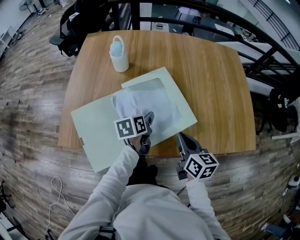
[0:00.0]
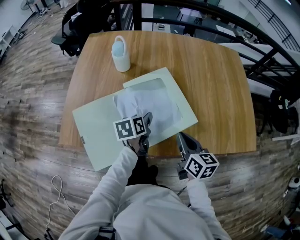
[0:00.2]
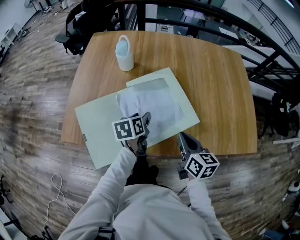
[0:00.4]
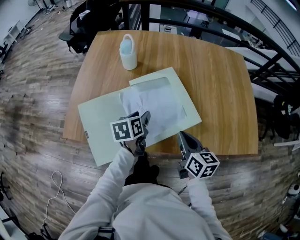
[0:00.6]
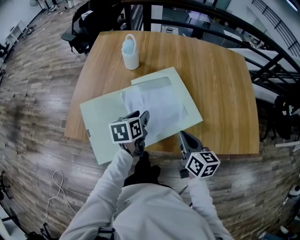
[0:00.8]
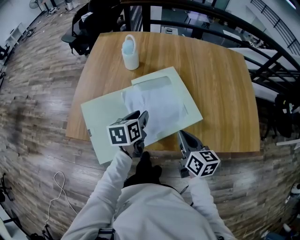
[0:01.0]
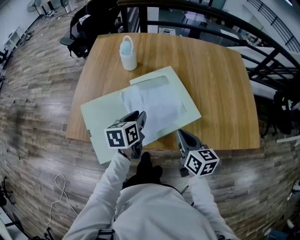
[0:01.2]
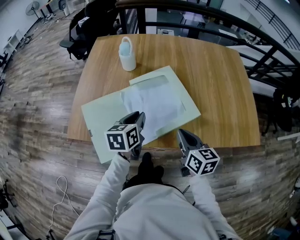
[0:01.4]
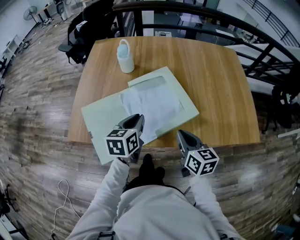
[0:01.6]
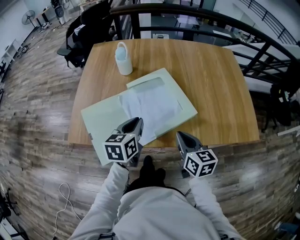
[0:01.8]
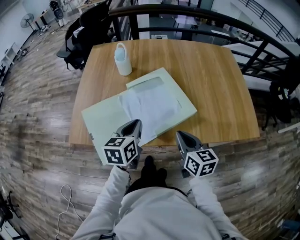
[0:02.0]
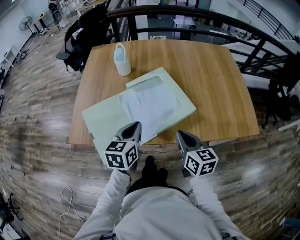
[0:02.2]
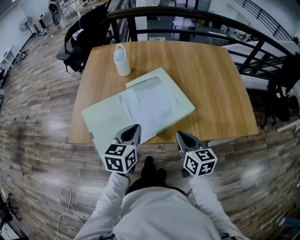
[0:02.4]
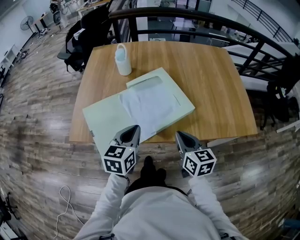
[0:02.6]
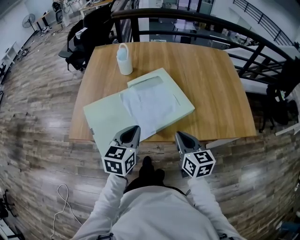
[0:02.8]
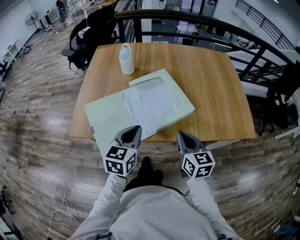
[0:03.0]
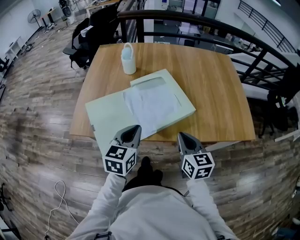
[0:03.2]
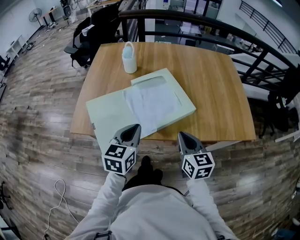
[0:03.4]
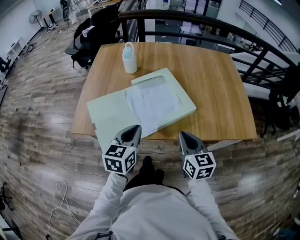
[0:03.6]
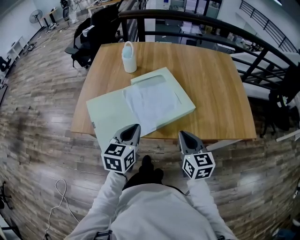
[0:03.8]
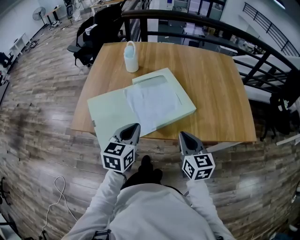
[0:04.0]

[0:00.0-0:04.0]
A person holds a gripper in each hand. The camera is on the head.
0:00.0 to 0:01.4: The left gripper is displaced upward and backward by approximately 10 cm, swivels roughly 20 degrees, and closes its fingers.
0:01.4 to 0:02.6: The left gripper goes about 10 cm backward.
0:02.6 to 0:04.0: The grippers stay close to where they were, moving slightly.

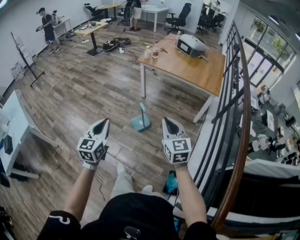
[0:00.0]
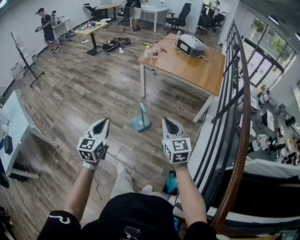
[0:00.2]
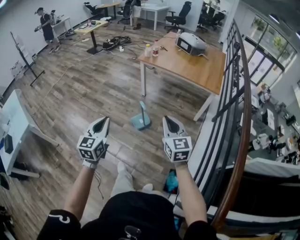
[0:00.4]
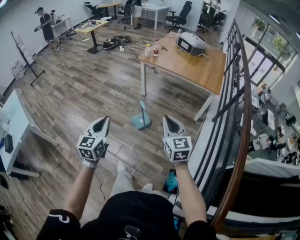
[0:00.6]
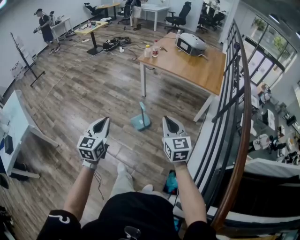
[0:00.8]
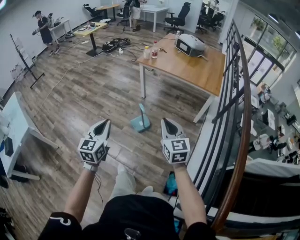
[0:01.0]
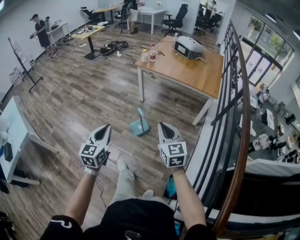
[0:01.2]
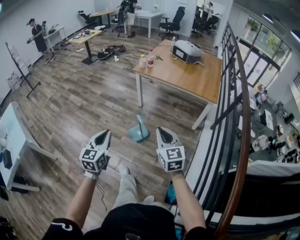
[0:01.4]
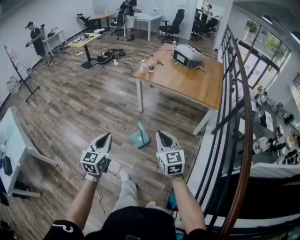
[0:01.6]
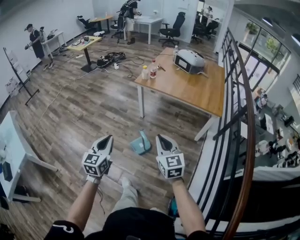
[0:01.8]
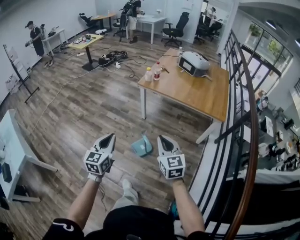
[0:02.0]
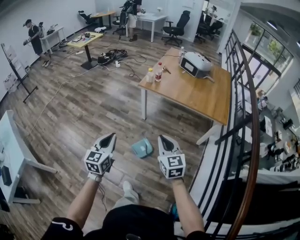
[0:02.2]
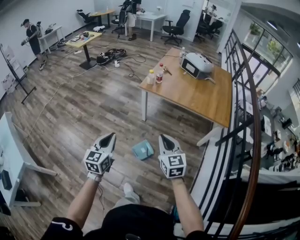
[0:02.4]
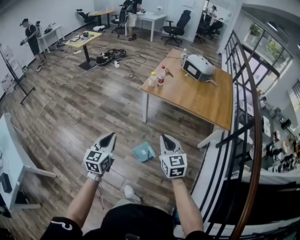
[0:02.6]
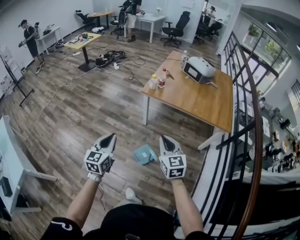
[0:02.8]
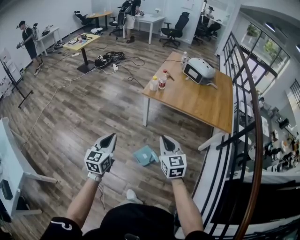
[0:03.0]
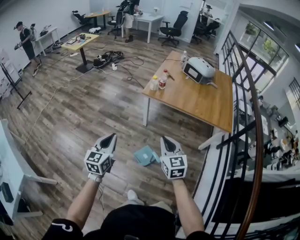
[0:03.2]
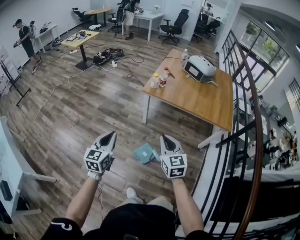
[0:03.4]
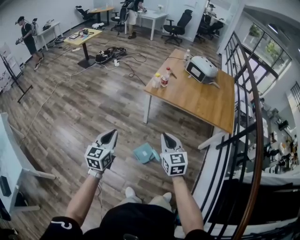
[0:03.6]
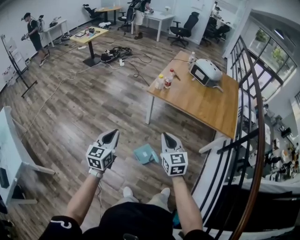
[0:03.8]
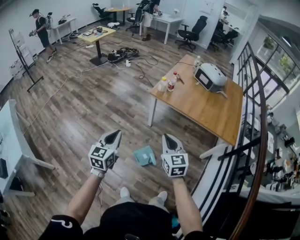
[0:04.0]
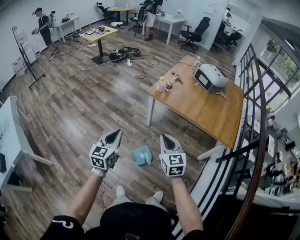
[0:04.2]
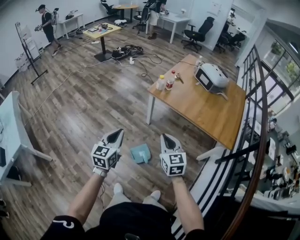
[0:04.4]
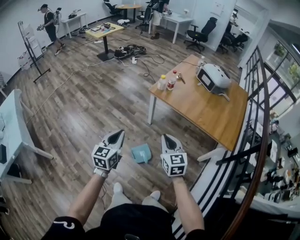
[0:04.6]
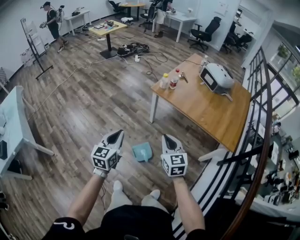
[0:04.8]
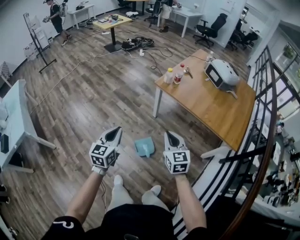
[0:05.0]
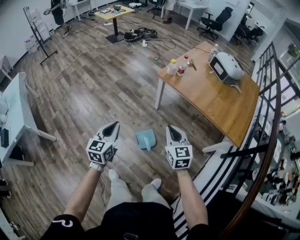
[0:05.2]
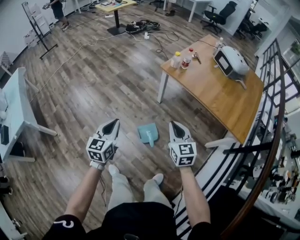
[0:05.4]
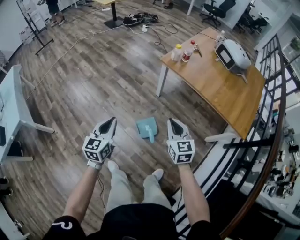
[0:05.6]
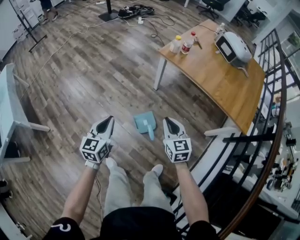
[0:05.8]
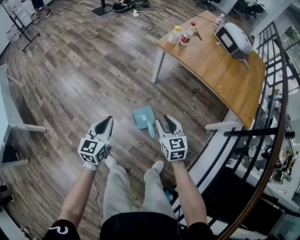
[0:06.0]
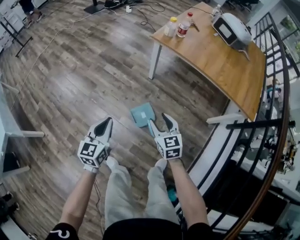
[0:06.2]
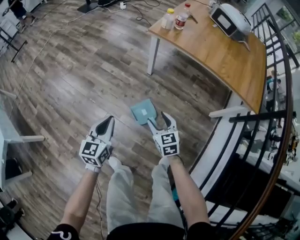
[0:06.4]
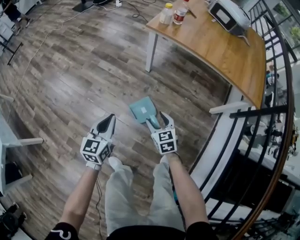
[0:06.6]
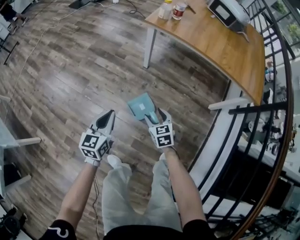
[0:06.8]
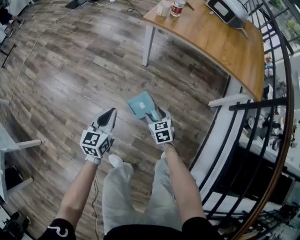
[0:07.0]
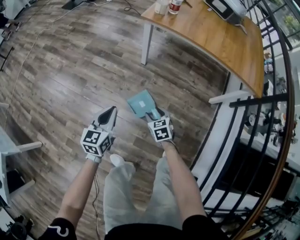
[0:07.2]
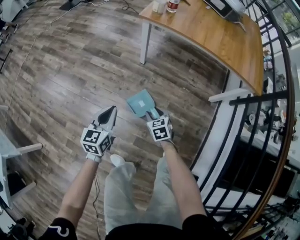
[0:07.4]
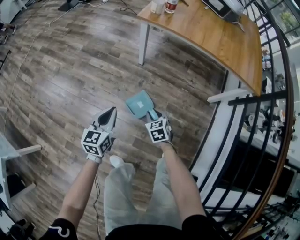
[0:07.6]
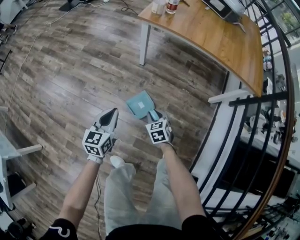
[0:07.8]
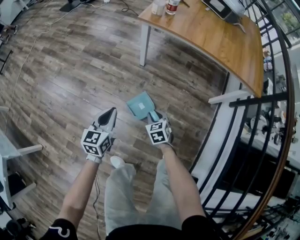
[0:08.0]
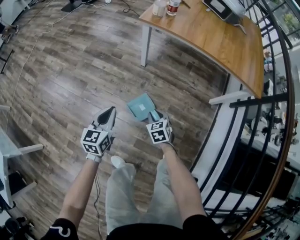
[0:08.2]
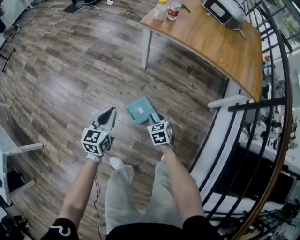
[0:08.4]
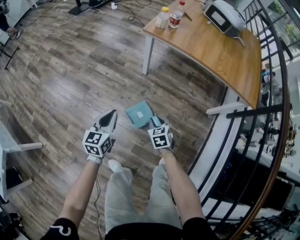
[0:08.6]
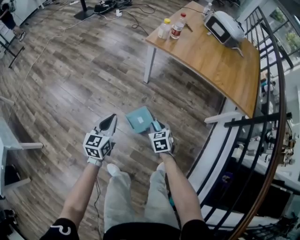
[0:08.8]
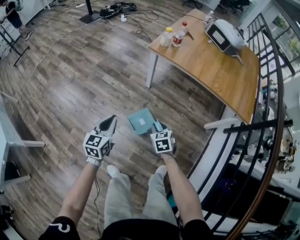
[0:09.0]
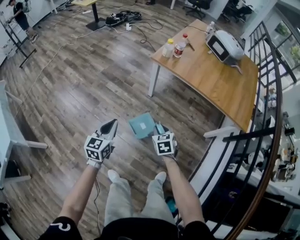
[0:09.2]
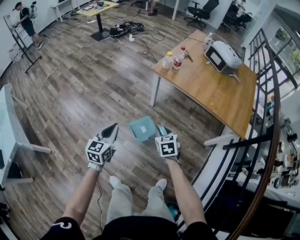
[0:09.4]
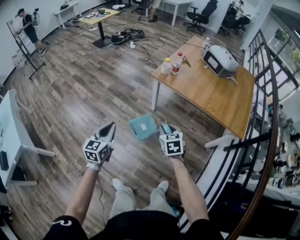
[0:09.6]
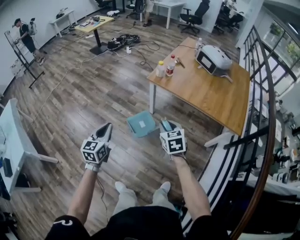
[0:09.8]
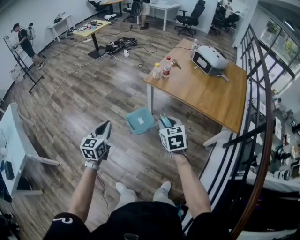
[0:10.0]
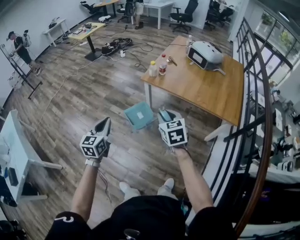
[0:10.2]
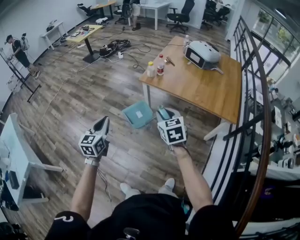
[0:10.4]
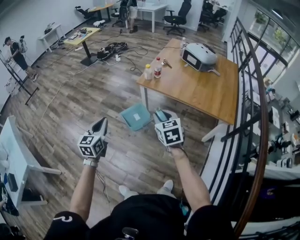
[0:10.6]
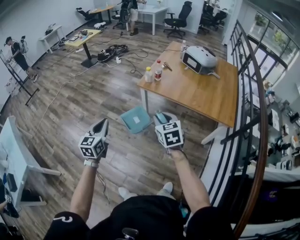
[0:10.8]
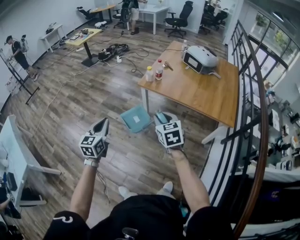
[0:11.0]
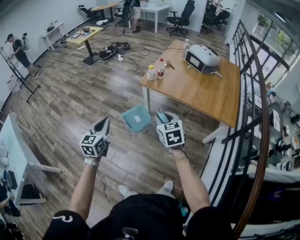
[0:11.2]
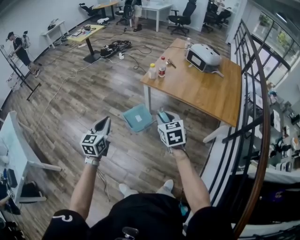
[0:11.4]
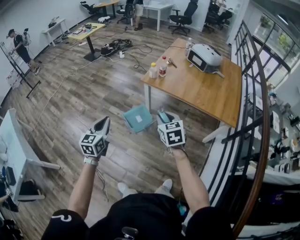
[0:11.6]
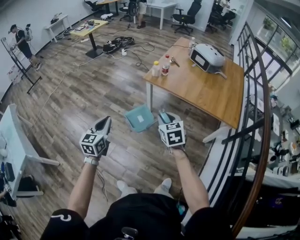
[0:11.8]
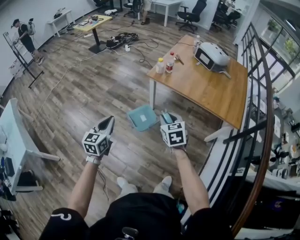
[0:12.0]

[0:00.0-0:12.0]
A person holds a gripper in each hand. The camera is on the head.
0:00.0 to 0:01.6: Both grippers move forward, approximately 10 cm.
0:01.6 to 0:03.0: The two grippers go about 30 cm forward and to the left.
0:03.0 to 0:04.4: Both grippers travel together to the right, some 10 cm.
0:04.4 to 0:06.0: Both grippers move downward, about 20 cm. The right gripper opens its fingers.
0:06.0 to 0:07.6: The left gripper goes roughly 15 cm downward. The right gripper goes about 30 cm downward, turns by approximately 30 degrees, and opens, then closes again.
0:07.6 to 0:09.0: The two grippers go some 15 cm upward.
0:09.0 to 0:10.4: The grippers both shift upward by some 30 cm. The right gripper rotates roughly 20 degrees.
0:10.4 to 0:12.0: The right gripper moves downward, approximately 5 cm.

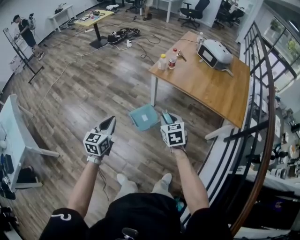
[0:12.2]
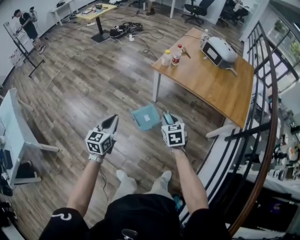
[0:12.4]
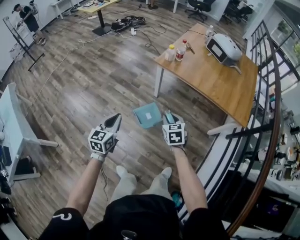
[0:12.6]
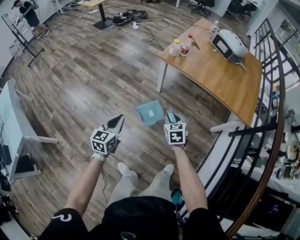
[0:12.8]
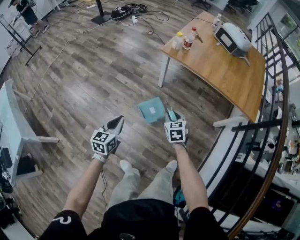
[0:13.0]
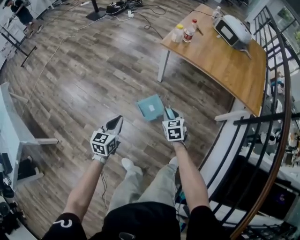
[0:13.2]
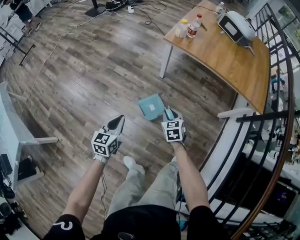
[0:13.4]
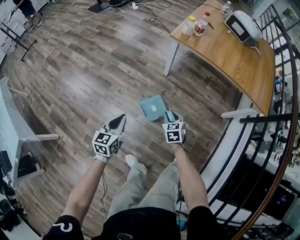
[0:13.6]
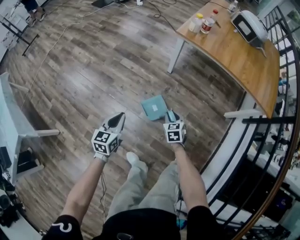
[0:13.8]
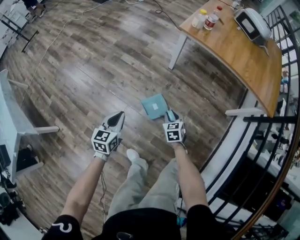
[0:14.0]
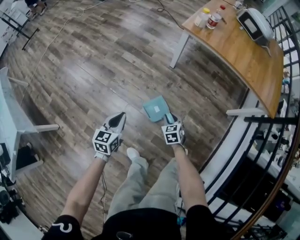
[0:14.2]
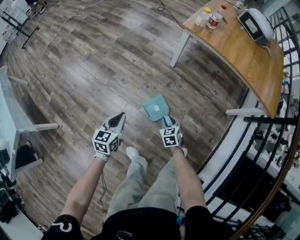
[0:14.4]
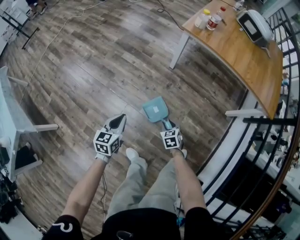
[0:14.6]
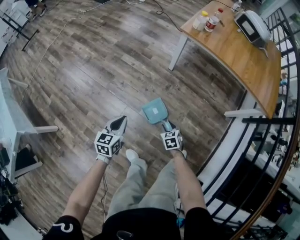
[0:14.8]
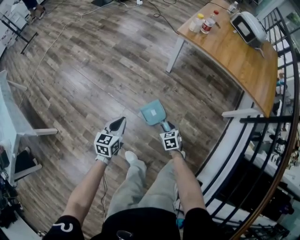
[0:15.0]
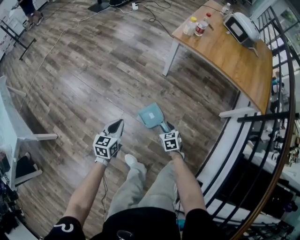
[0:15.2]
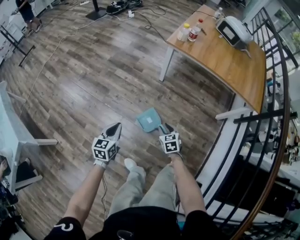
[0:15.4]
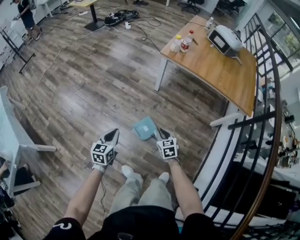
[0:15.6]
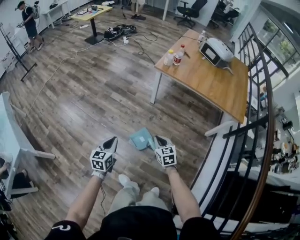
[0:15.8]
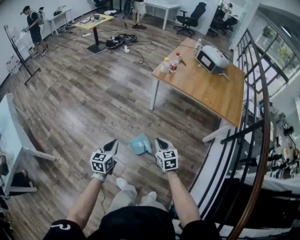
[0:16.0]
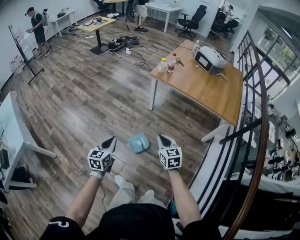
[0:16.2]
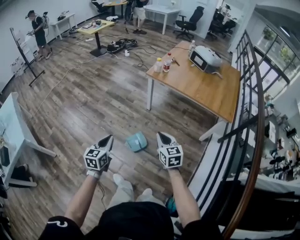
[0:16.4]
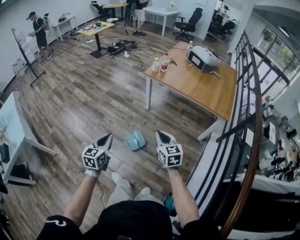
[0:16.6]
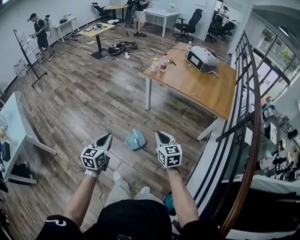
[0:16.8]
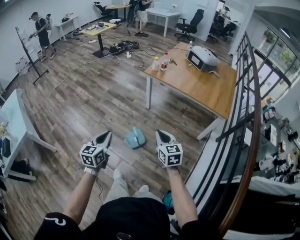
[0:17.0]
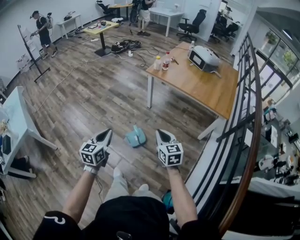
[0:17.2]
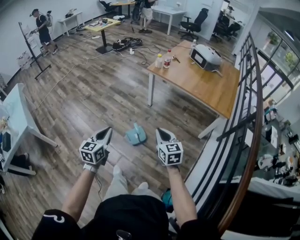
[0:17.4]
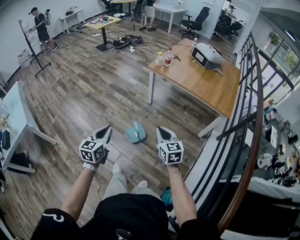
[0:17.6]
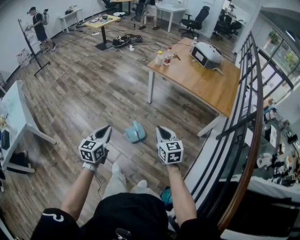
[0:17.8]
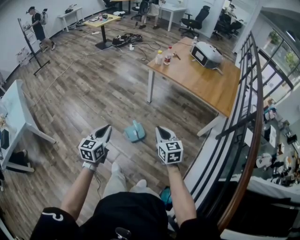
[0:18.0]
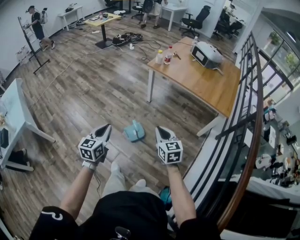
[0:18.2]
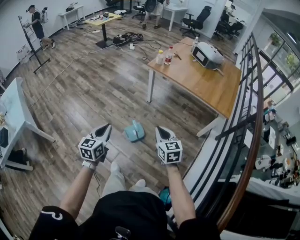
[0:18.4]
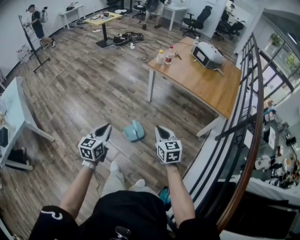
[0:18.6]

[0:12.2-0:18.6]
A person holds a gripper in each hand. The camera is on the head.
0:12.2 to 0:13.8: The left gripper is displaced downward and to the left by approximately 30 cm, while the right gripper travels downward by about 35 cm.
0:13.8 to 0:15.4: The right gripper is displaced backward by roughly 10 cm, and travels downward and back again, approximately 10 cm each way. The left gripper changes place by some 5 cm.
0:15.4 to 0:17.0: The grippers both shift upward, backward and to the right by some 40 cm. The right gripper rotates about 30 degrees, and closes its fingers.
0:17.0 to 0:18.6: The grippers stay close to where they were, moving slightly.

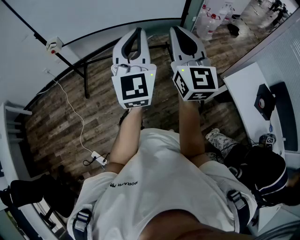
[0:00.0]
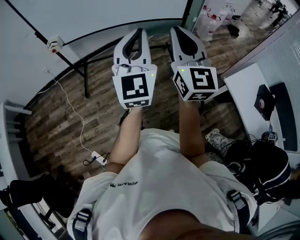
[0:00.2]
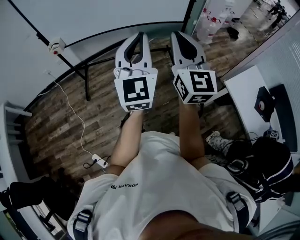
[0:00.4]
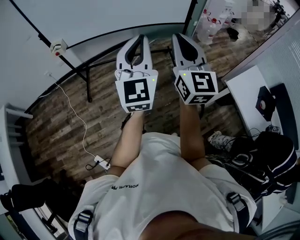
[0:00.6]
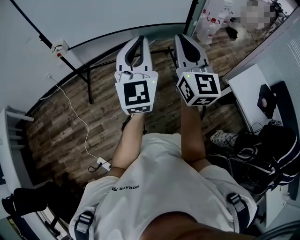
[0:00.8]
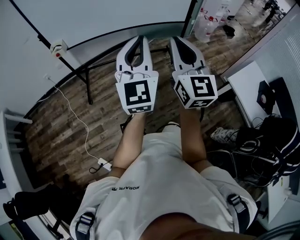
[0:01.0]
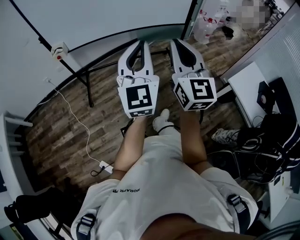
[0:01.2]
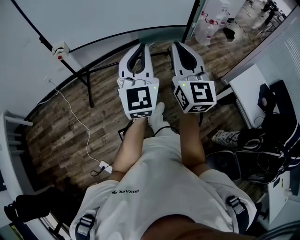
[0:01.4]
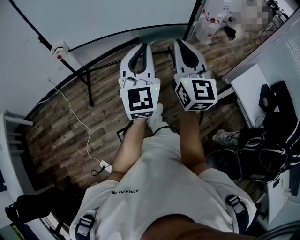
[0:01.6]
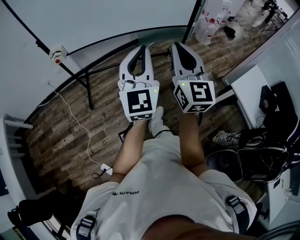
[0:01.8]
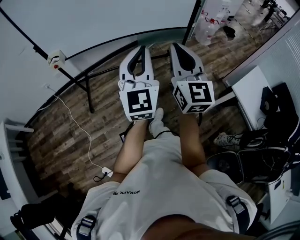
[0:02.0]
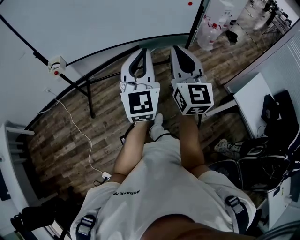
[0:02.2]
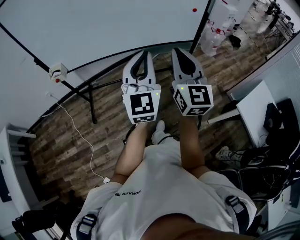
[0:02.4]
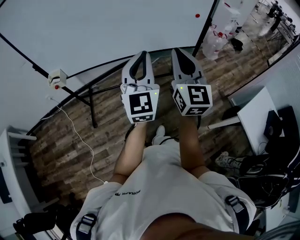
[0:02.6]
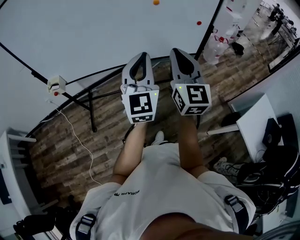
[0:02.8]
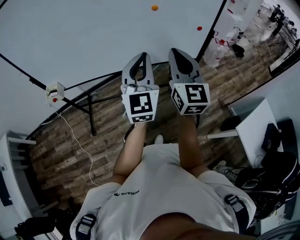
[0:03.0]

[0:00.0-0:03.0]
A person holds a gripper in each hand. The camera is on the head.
0:00.0 to 0:01.6: The two grippers go roughly 10 cm to the left.
0:01.6 to 0:03.0: Both grippers move forward, about 30 cm.
